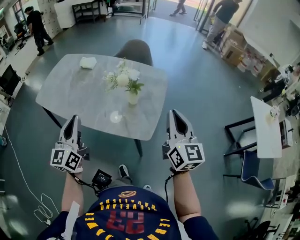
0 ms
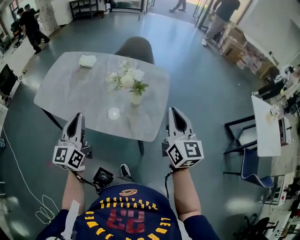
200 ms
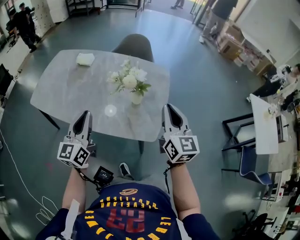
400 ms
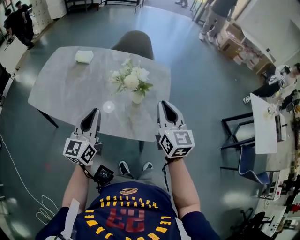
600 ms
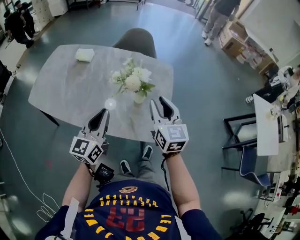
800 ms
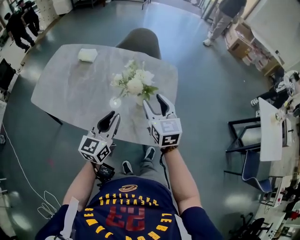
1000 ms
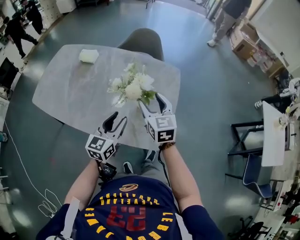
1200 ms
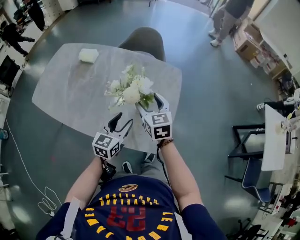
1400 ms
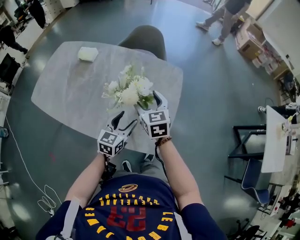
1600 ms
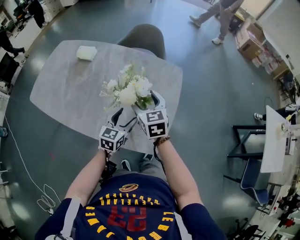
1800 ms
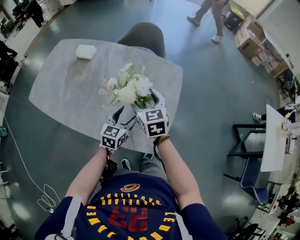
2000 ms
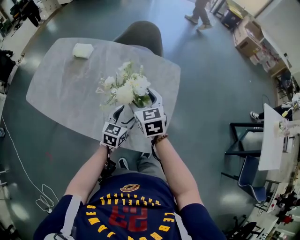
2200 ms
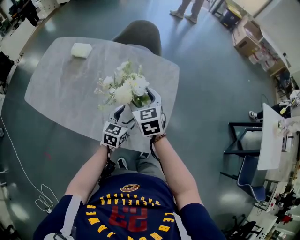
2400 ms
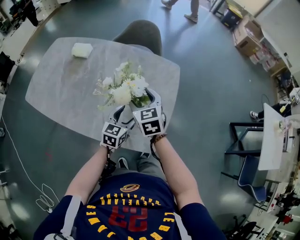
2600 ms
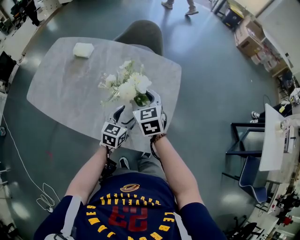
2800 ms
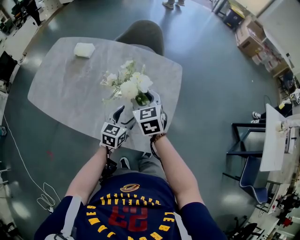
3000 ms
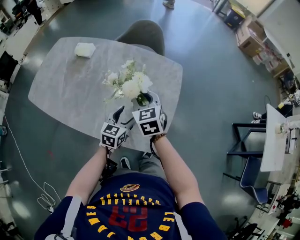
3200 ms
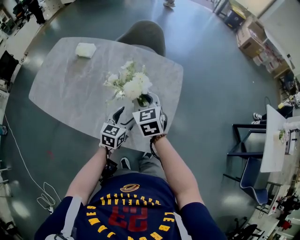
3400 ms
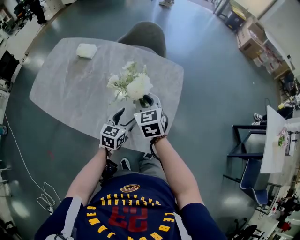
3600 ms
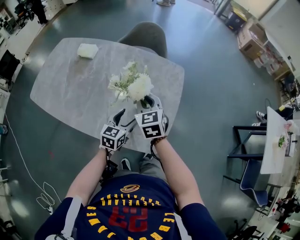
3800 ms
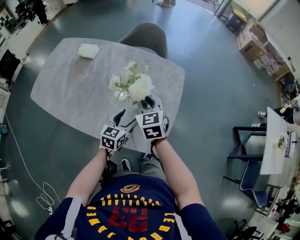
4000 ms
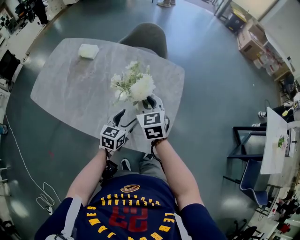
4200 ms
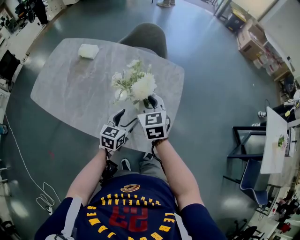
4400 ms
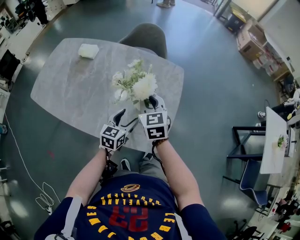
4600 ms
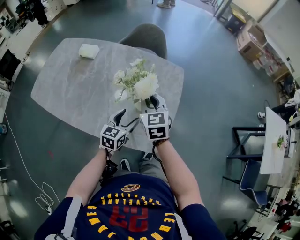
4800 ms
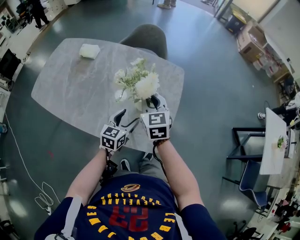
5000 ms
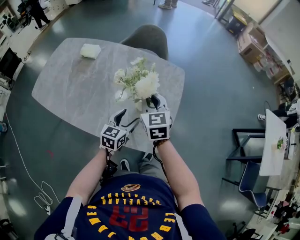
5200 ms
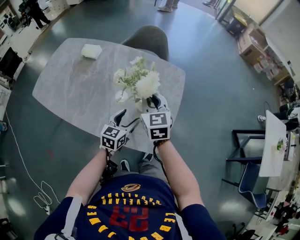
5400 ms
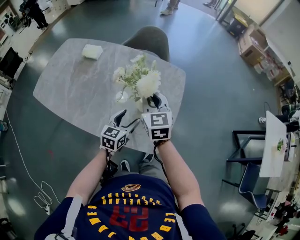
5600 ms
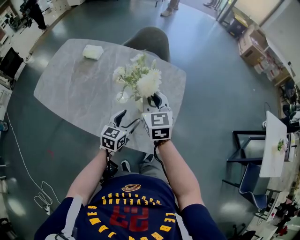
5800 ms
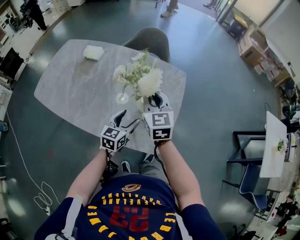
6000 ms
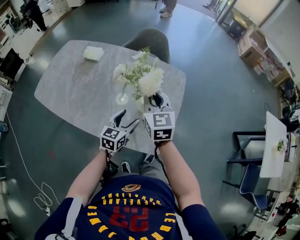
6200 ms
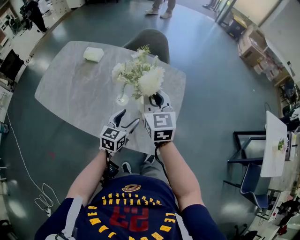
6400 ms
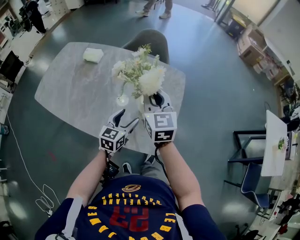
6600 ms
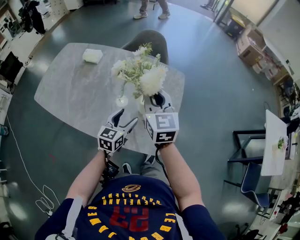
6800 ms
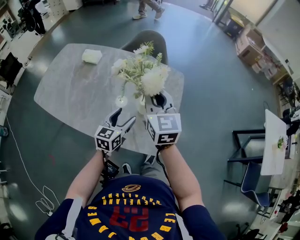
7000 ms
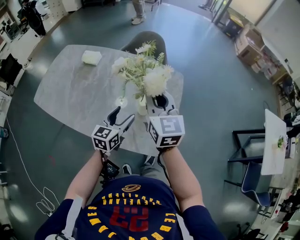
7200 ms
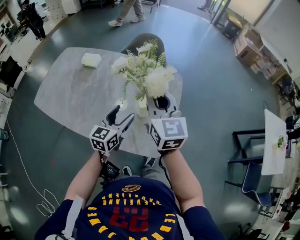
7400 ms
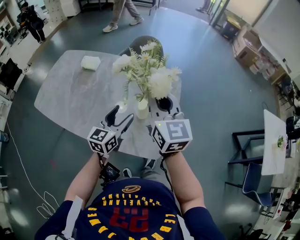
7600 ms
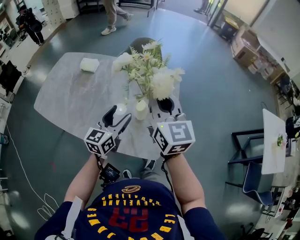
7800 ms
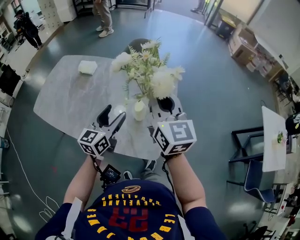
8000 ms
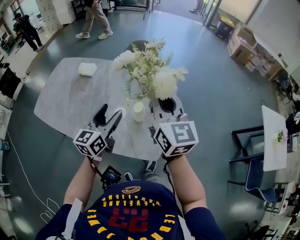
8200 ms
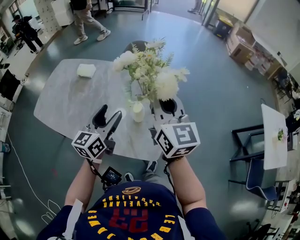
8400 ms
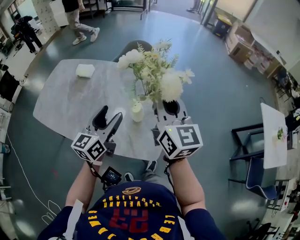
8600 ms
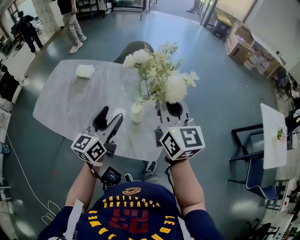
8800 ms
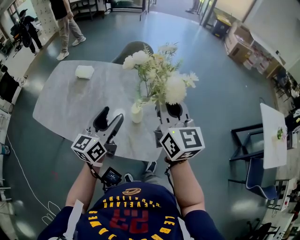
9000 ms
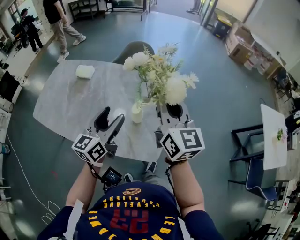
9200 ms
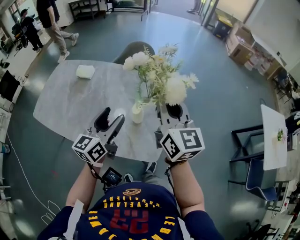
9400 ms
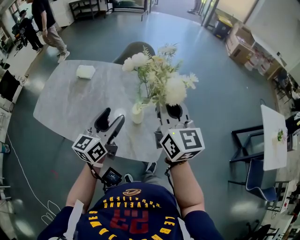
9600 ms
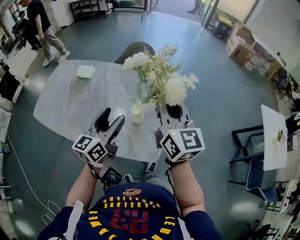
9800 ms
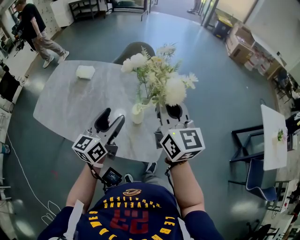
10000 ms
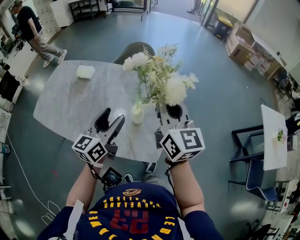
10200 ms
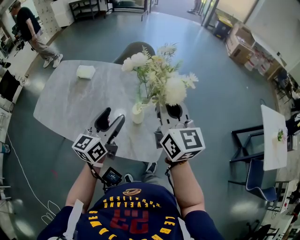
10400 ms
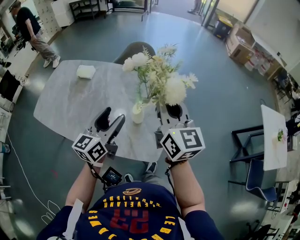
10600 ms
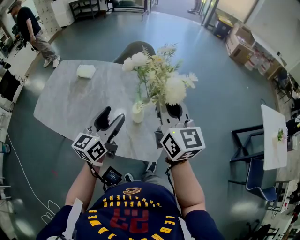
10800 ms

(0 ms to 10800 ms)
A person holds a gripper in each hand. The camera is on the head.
0 ms - 1600 ms: The right gripper moves forward, downward and to the left, some 35 cm, rotates some 30 degrees, and opens up. The left gripper travels downward, forward and to the right by approximately 35 cm, turns by approximately 30 degrees, and opens its fingers.
1600 ms - 3000 ms: The right gripper closes its fingers.
3000 ms - 4600 ms: The right gripper closes.
4600 ms - 6200 ms: The right gripper goes about 5 cm upward.
6200 ms - 7800 ms: Both grippers move upward, some 10 cm.
7800 ms - 9200 ms: The left gripper goes approximately 5 cm upward.
9200 ms - 10800 ms: The grippers move only a little.

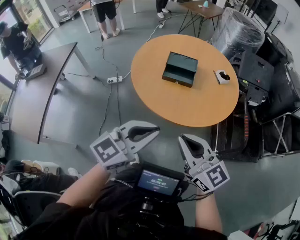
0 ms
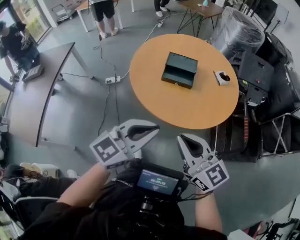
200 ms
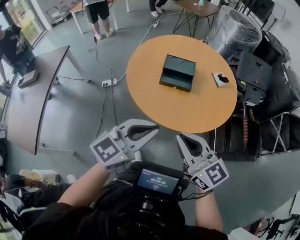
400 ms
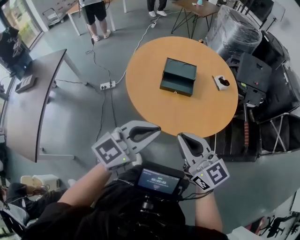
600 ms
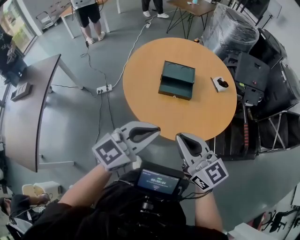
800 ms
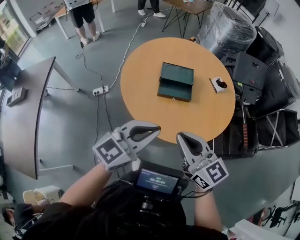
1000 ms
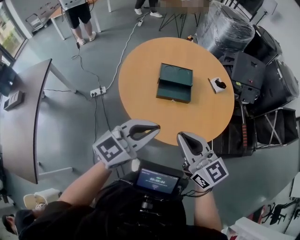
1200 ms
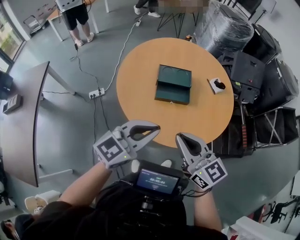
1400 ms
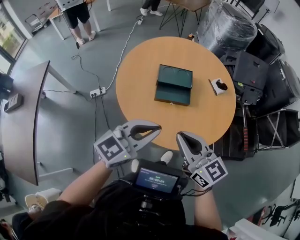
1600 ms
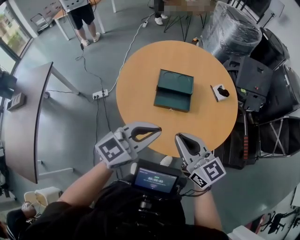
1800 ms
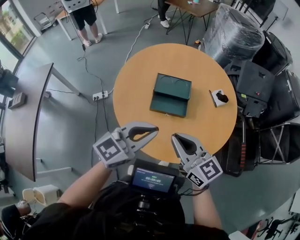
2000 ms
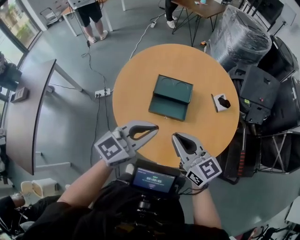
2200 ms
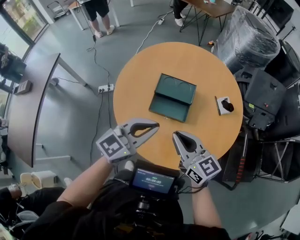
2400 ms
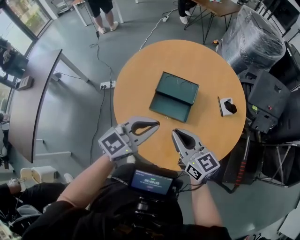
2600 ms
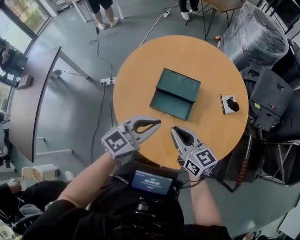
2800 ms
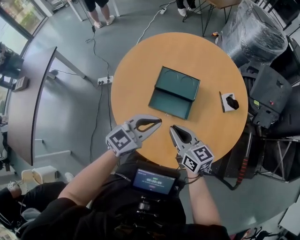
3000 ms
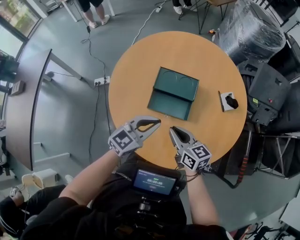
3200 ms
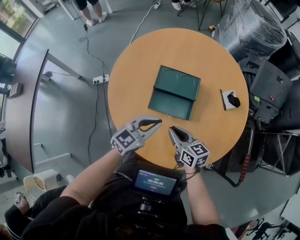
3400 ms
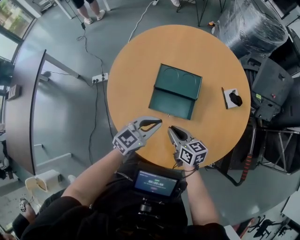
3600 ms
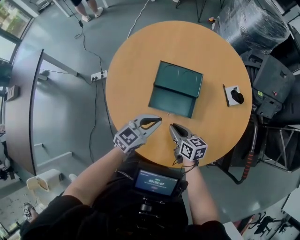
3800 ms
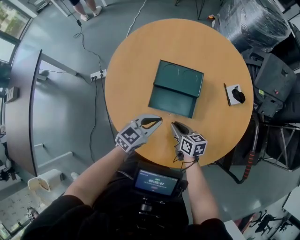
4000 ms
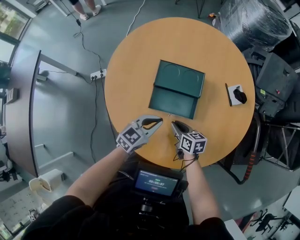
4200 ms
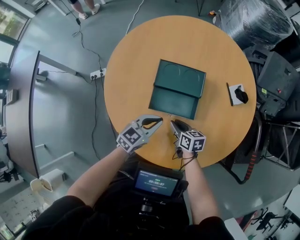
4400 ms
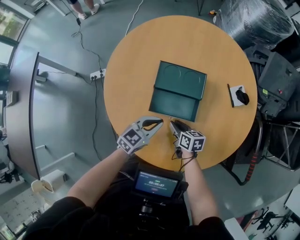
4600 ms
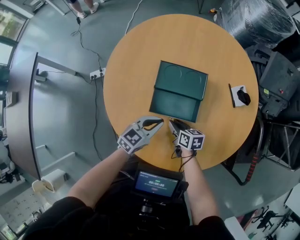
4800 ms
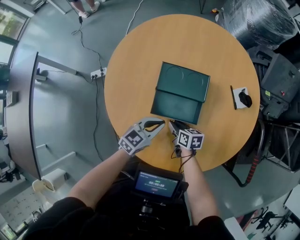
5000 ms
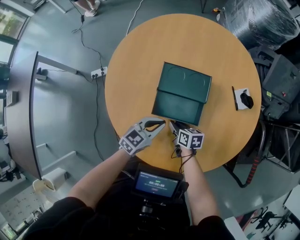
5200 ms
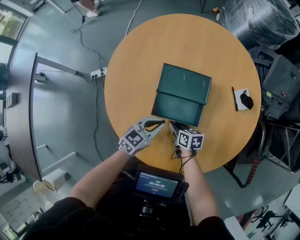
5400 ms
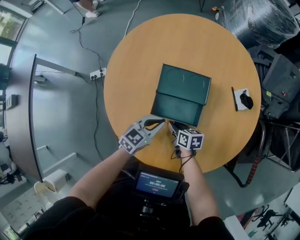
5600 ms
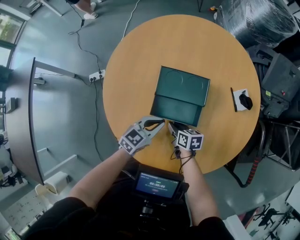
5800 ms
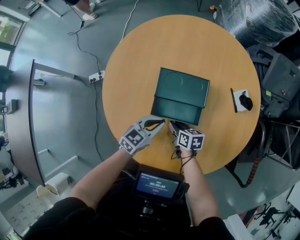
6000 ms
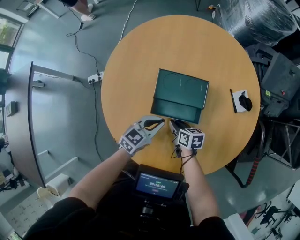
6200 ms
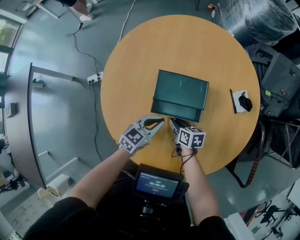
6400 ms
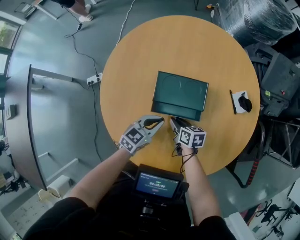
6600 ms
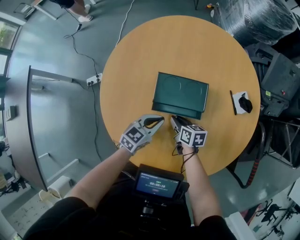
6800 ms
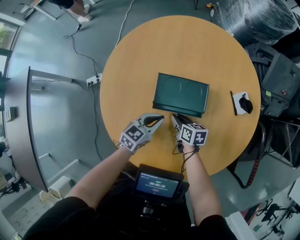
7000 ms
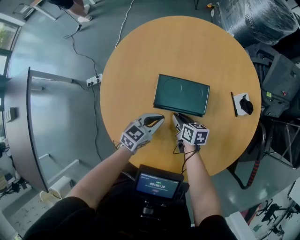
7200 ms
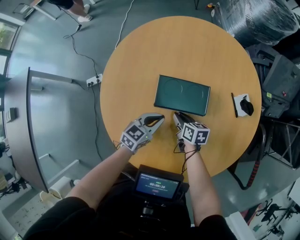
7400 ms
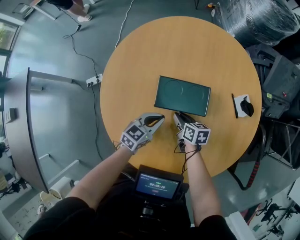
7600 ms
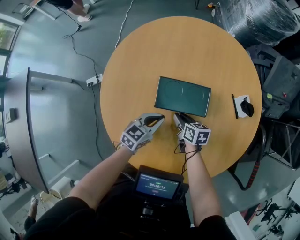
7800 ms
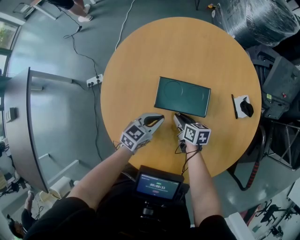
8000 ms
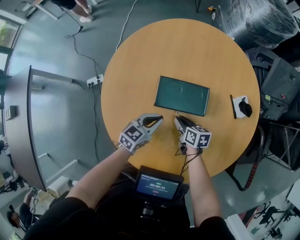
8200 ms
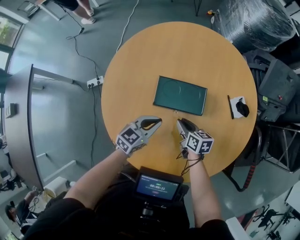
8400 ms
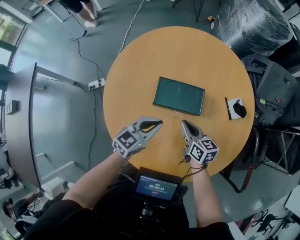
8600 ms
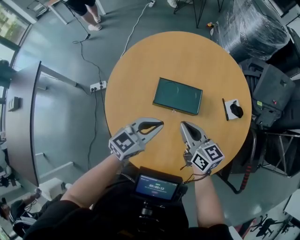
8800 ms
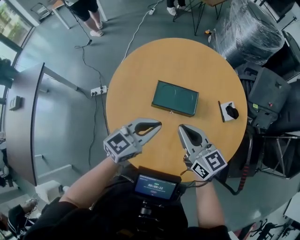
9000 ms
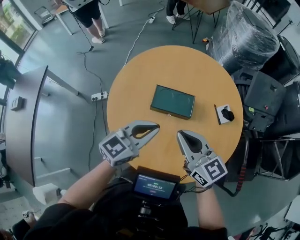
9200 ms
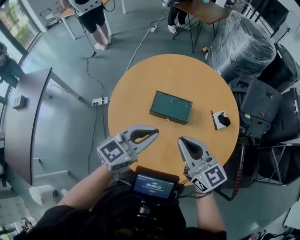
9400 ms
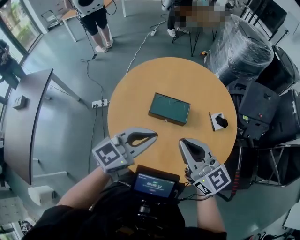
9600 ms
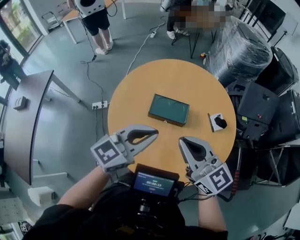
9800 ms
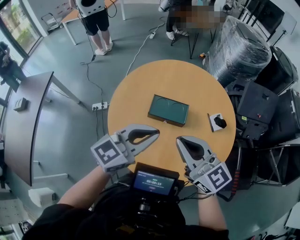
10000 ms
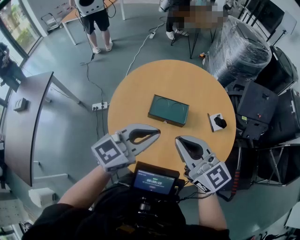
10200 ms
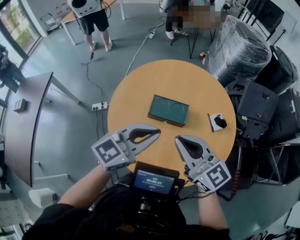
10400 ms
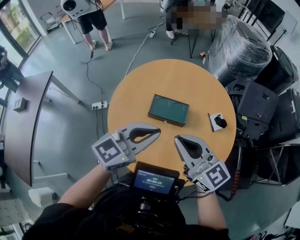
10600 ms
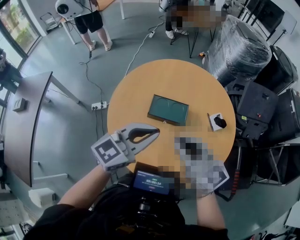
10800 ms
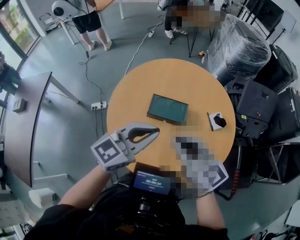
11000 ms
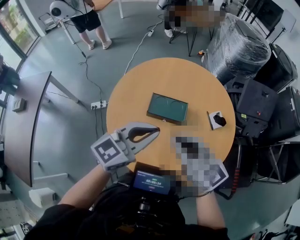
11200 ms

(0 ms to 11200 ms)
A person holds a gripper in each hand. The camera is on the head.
0 ms - 1600 ms: The right gripper shifts roughly 30 cm forward and to the left. The left gripper heads forward, covering approximately 30 cm.
1600 ms - 3200 ms: Both grippers travel together forward and downward, roughly 30 cm. The right gripper swivels about 20 degrees.
3200 ms - 4800 ms: The left gripper moves downward and forward, roughly 20 cm. Meanwhile the right gripper moves downward, about 25 cm, and swivels some 30 degrees.
4800 ms - 6400 ms: Both grippers travel together forward, roughly 10 cm.
6400 ms - 8000 ms: The two grippers go roughly 5 cm forward.
8000 ms - 9600 ms: Both grippers move upward and backward, approximately 50 cm. The left gripper turns by about 30 degrees. The right gripper points its fingers about 40 degrees further upward.
9600 ms - 11200 ms: The grippers move only a little.

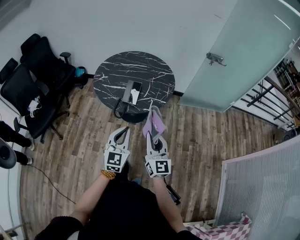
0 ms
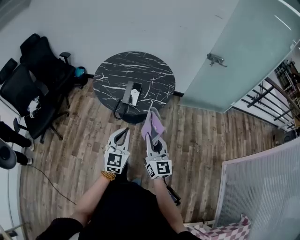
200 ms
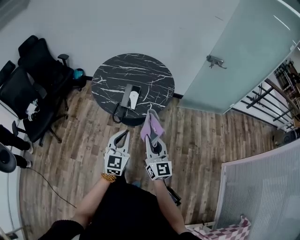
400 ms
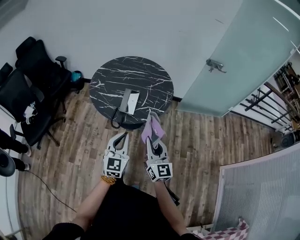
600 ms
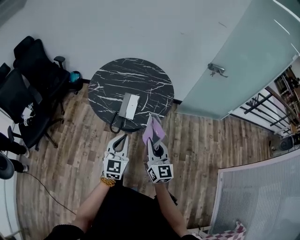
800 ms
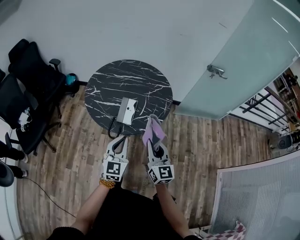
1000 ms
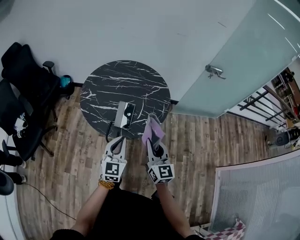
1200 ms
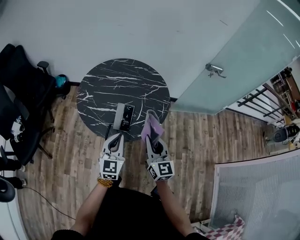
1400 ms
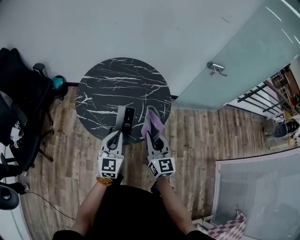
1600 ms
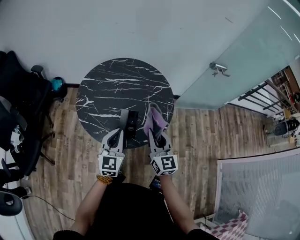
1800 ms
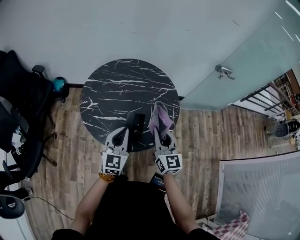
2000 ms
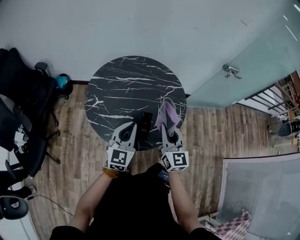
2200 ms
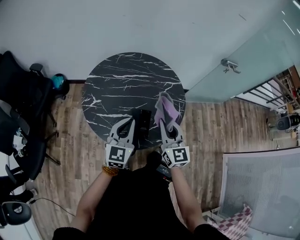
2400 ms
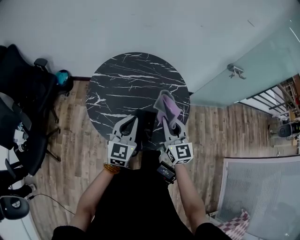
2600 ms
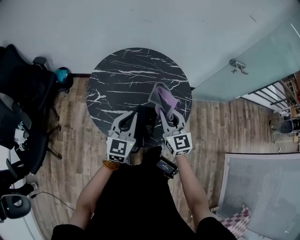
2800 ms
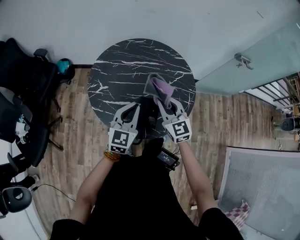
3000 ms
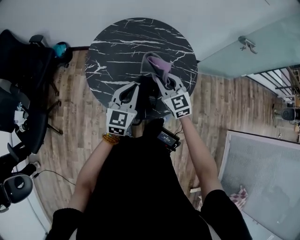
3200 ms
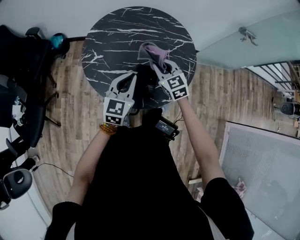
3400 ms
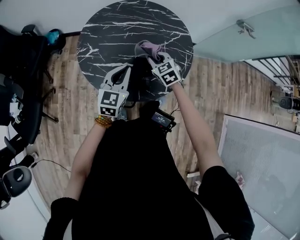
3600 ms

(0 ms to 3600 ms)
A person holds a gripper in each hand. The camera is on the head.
0 ms - 1800 ms: Both grippers travel together forward, roughly 30 cm.
1800 ms - 3600 ms: The right gripper heads downward, forward and to the left, covering some 25 cm, and angles its fingers downward, by about 40 degrees; the left gripper goes approximately 10 cm forward and downward.
